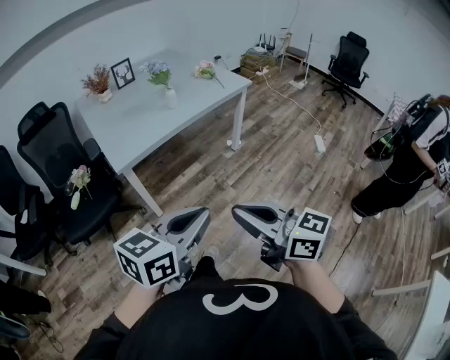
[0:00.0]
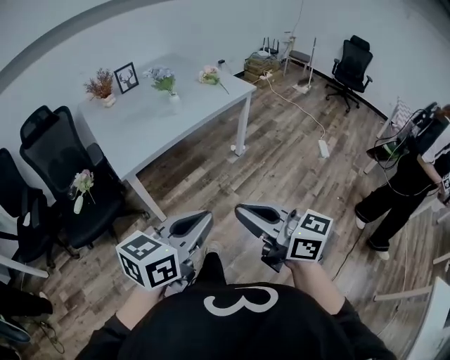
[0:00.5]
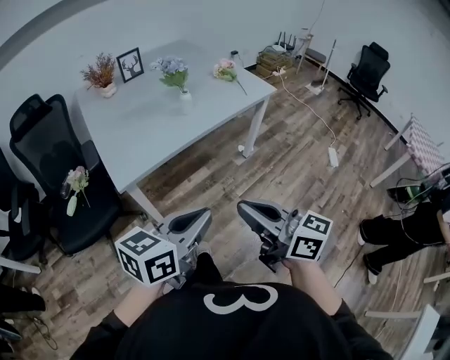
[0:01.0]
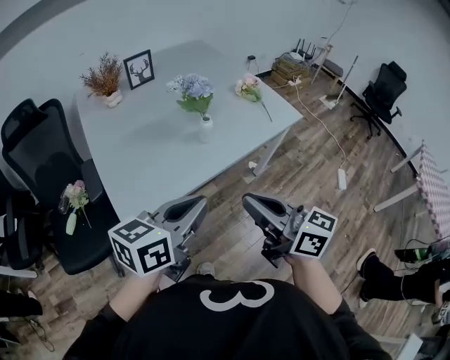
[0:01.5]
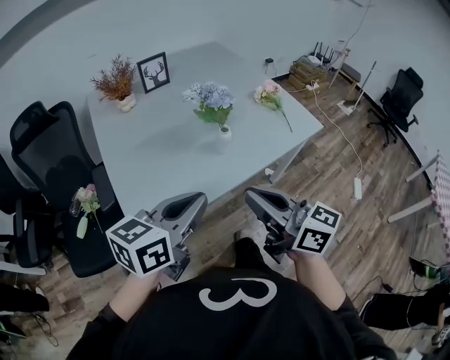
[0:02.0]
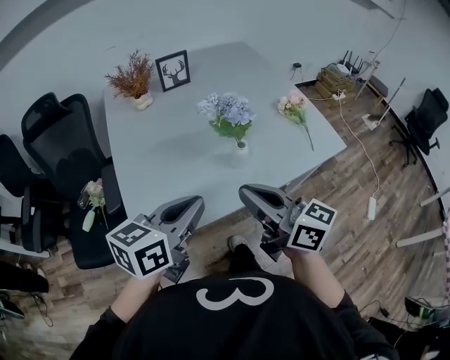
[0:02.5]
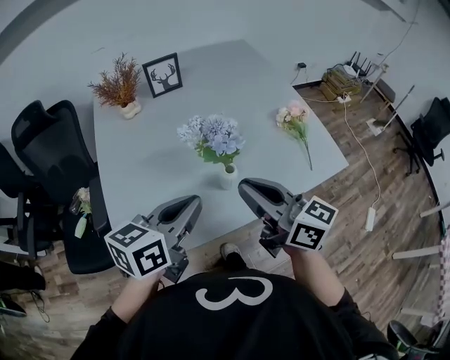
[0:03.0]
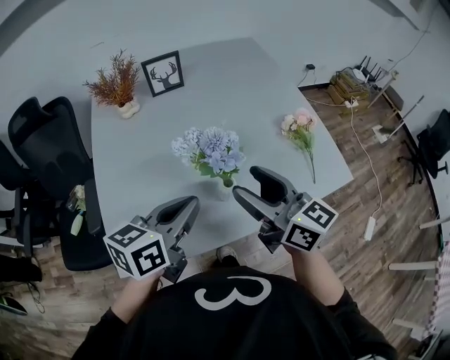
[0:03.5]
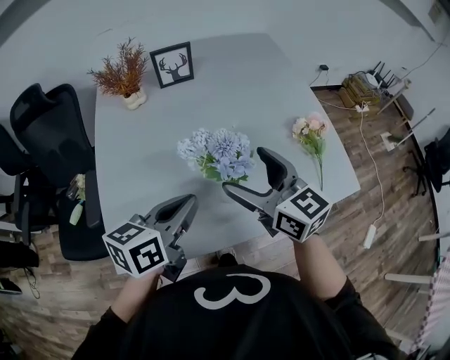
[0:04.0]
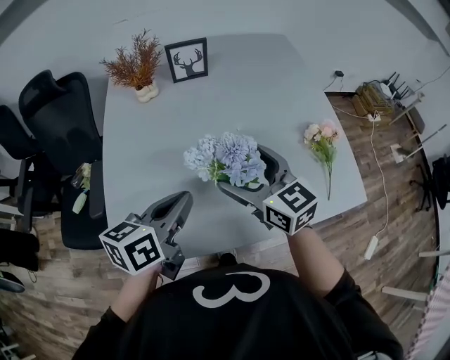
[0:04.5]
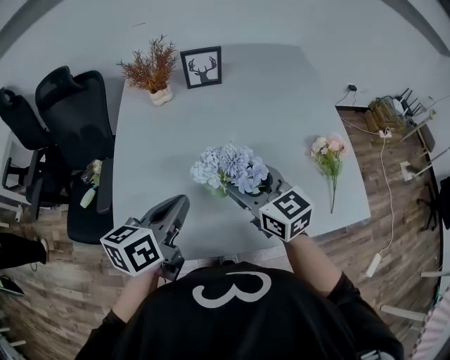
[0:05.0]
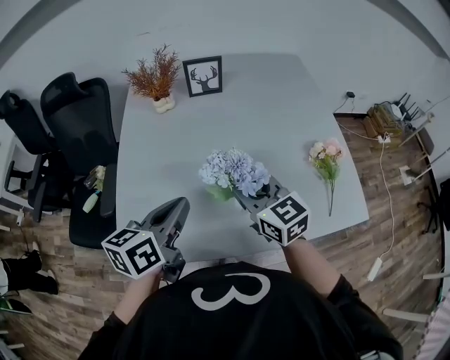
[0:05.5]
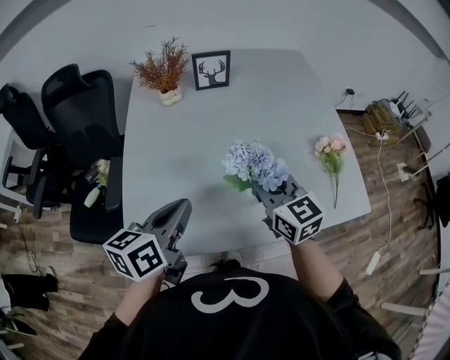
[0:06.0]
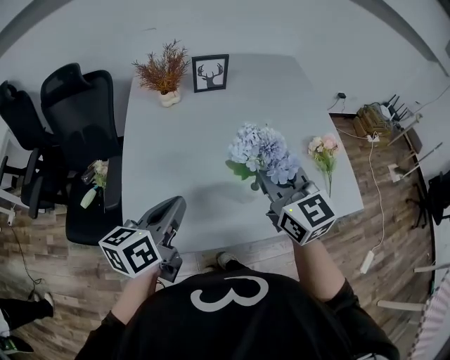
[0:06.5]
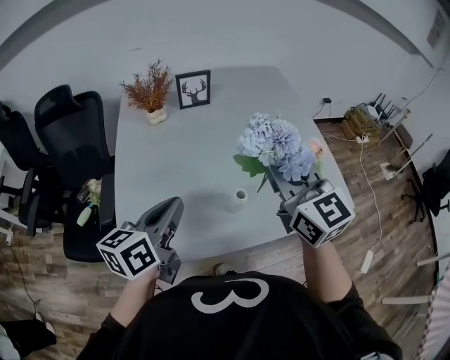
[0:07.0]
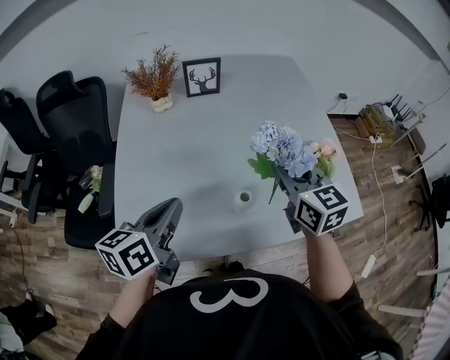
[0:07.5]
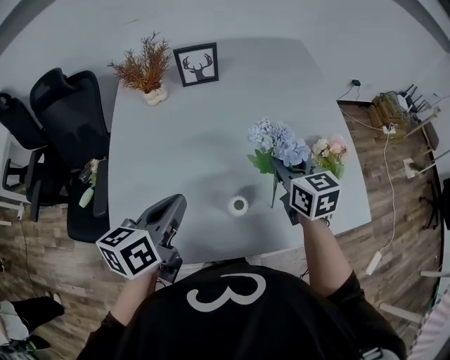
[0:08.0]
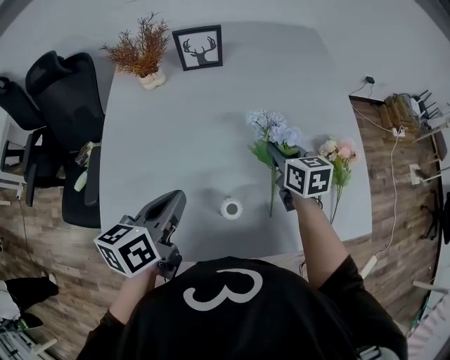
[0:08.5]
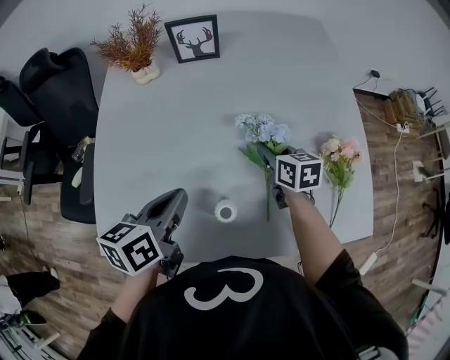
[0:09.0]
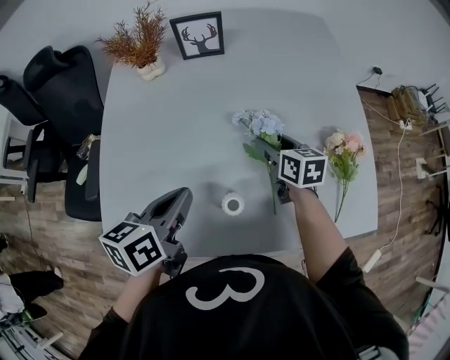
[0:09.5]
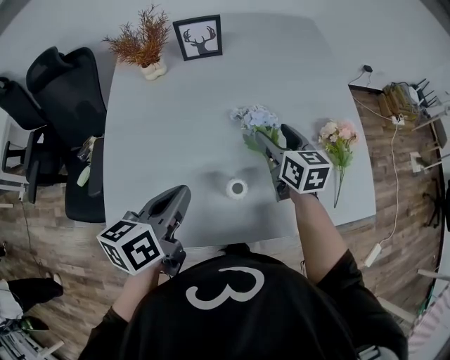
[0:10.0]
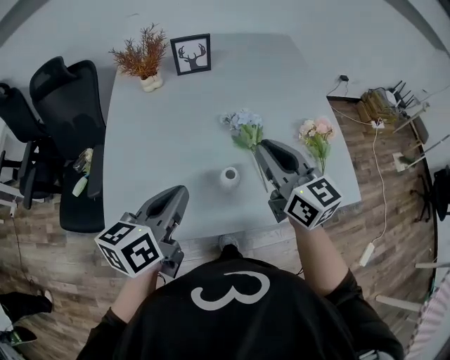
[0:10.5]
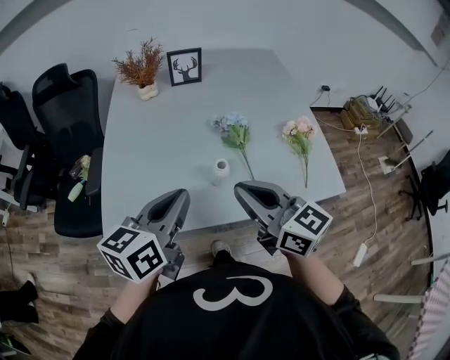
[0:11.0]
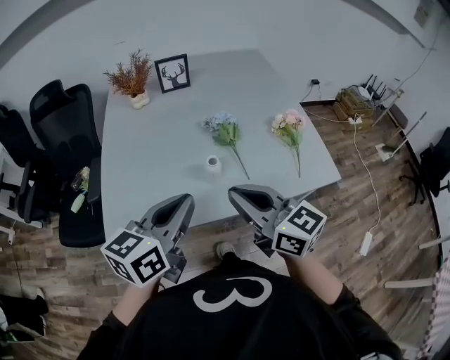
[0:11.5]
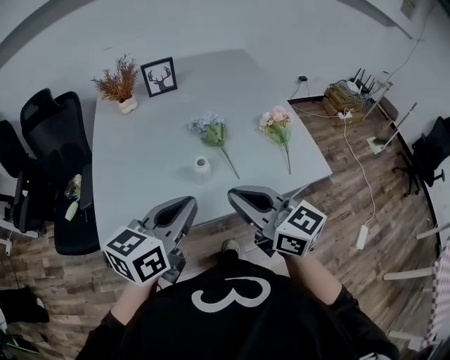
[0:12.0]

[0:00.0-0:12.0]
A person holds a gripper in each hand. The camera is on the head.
0:00.0 to 0:02.0: Both grippers are carried forward, approximately 40 cm.
0:02.0 to 0:04.0: Both grippers travel together forward, some 25 cm. The right gripper turns by roughly 20 degrees, and opens its fingers, while the left gripper turns by roughly 20 degrees.
0:04.0 to 0:06.0: The left gripper is displaced to the left by approximately 10 cm. Meanwhile the right gripper closes.
0:06.0 to 0:08.0: The right gripper goes roughly 15 cm to the right and forward, and reaches roughly 15 cm upward, then returns. Meanwhile the left gripper is displaced forward by roughly 5 cm.
0:08.0 to 0:10.0: The right gripper shifts about 5 cm downward, and opens.
0:10.0 to 0:12.0: The right gripper goes approximately 35 cm backward and upward, swivels roughly 30 degrees, and closes. The left gripper heads backward, upward and to the right, covering some 20 cm, and rotates roughly 30 degrees.

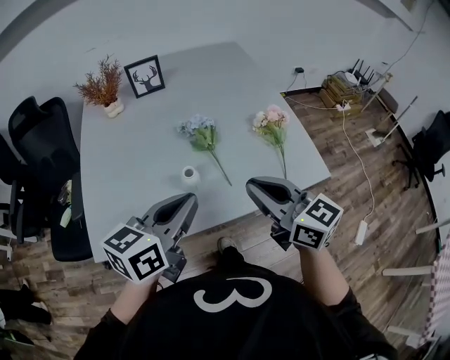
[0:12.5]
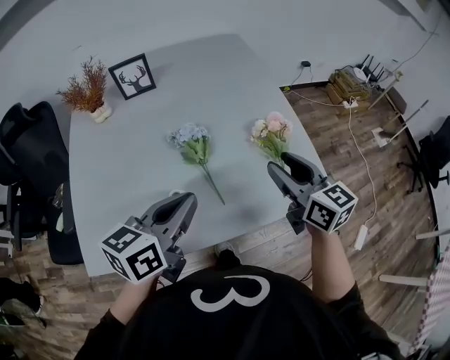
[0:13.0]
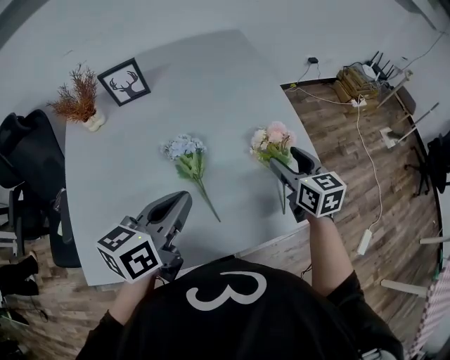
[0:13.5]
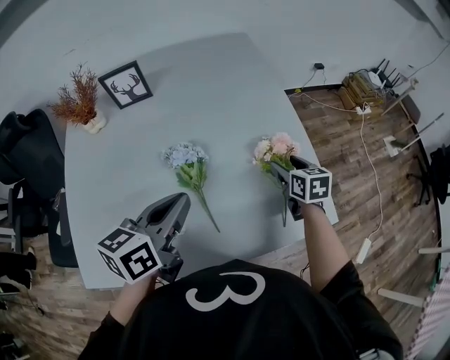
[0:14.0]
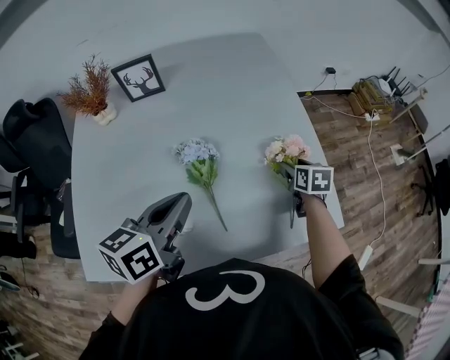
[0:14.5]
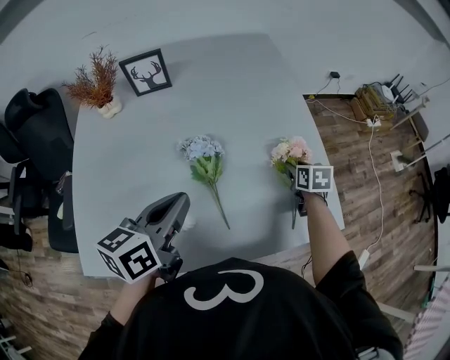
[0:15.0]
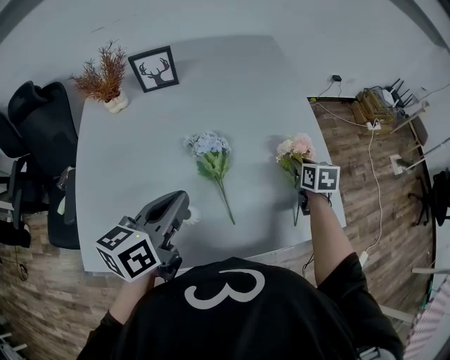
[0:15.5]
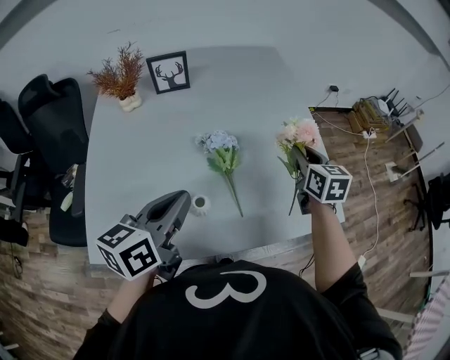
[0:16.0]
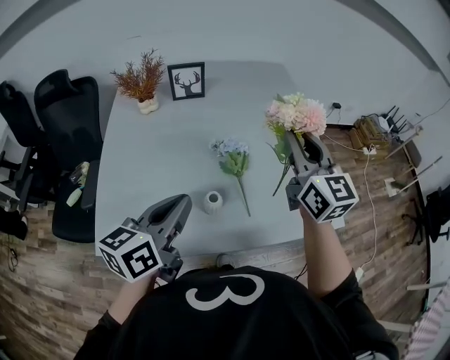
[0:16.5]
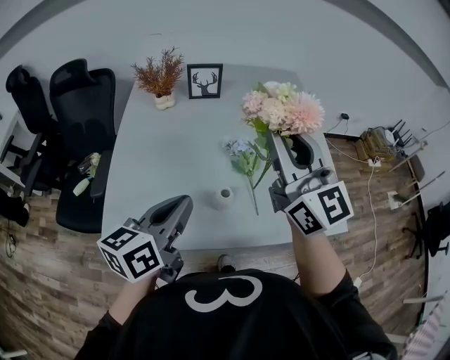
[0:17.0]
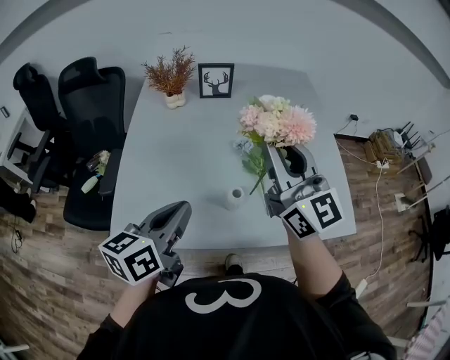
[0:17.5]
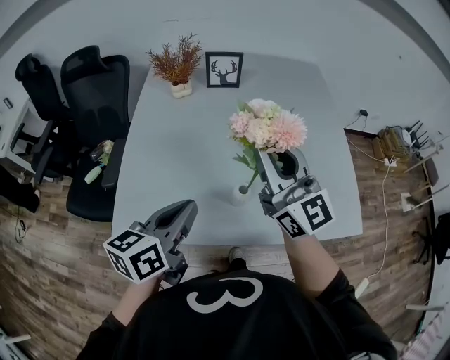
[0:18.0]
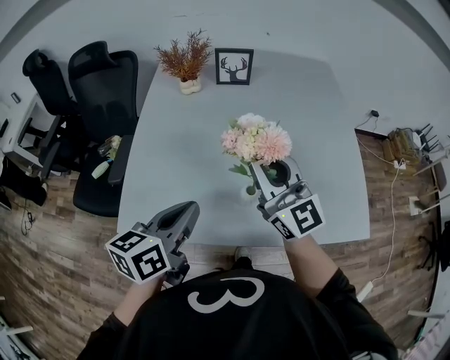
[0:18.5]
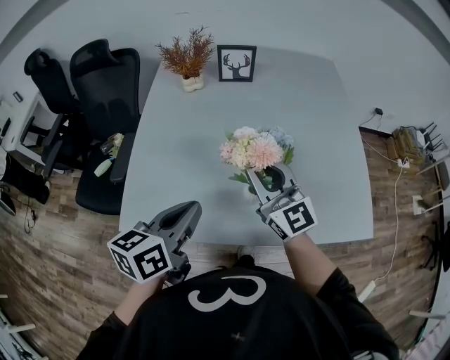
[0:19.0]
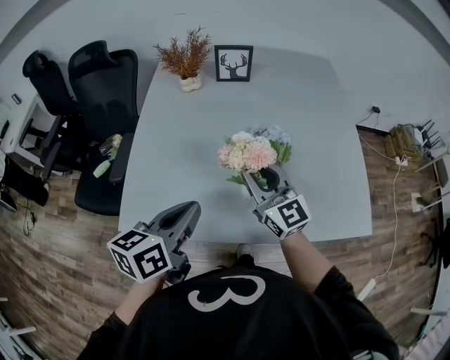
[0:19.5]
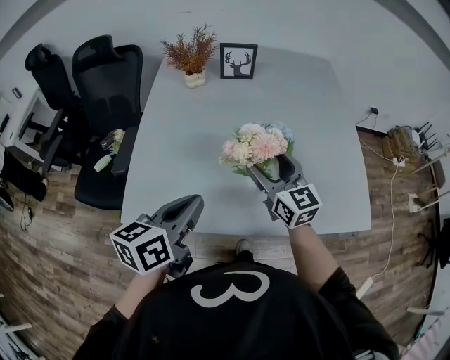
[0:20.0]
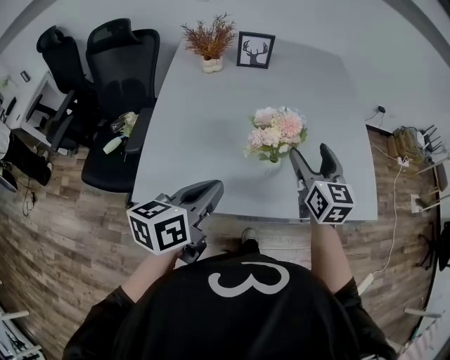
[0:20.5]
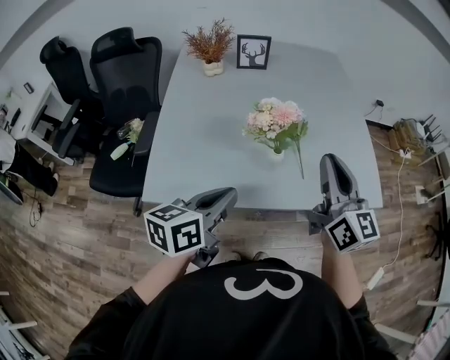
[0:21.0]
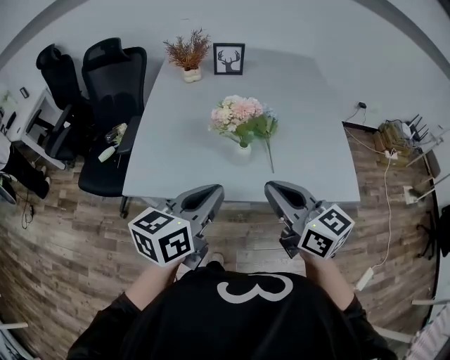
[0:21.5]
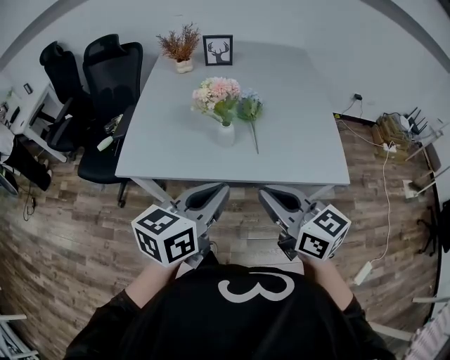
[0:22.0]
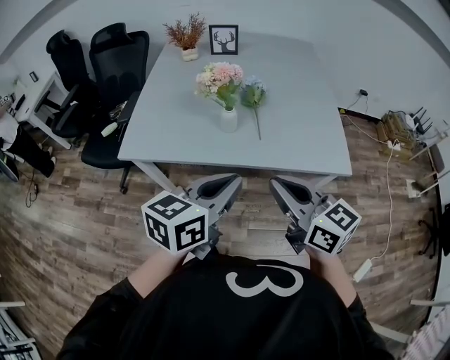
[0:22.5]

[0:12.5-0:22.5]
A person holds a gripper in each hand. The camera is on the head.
0:12.5 to 0:14.5: The right gripper heads forward, downward and to the right, covering approximately 40 cm, points its fingers about 40 degrees further downward, and opens up; the left gripper shifts about 20 cm forward.
0:14.5 to 0:16.5: The left gripper heads backward, to the left and upward, covering approximately 15 cm; the right gripper is displaced upward and to the left by approximately 35 cm, points its fingers roughly 50 degrees further upward, and closes its fingers.
0:16.5 to 0:18.5: The right gripper heads to the left, covering approximately 20 cm, and changes its angle by about 30 degrees, while the left gripper is displaced to the left by about 5 cm.
0:18.5 to 0:20.5: The left gripper ends up approximately 5 cm from where it was. Meanwhile the right gripper goes roughly 10 cm to the right and downward, changes its angle by roughly 40 degrees, and opens.
0:20.5 to 0:22.5: The right gripper heads backward, covering approximately 30 cm, turns by some 40 degrees, and closes up, while the left gripper moves to the right and backward, some 25 cm.

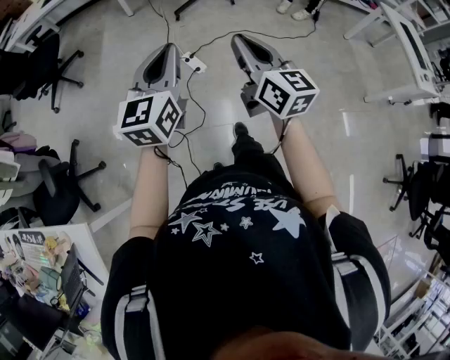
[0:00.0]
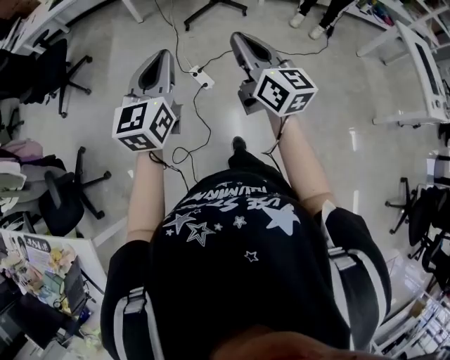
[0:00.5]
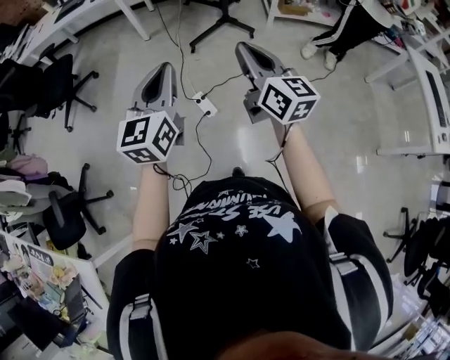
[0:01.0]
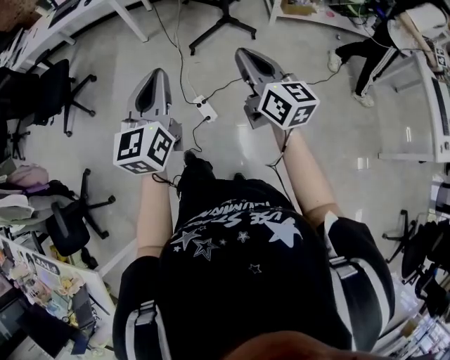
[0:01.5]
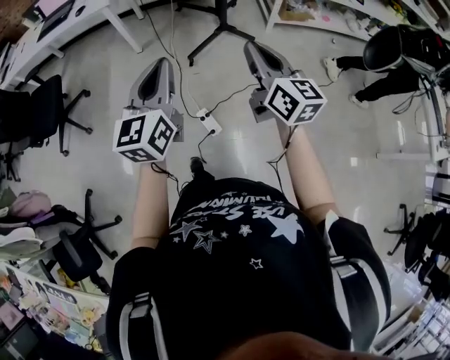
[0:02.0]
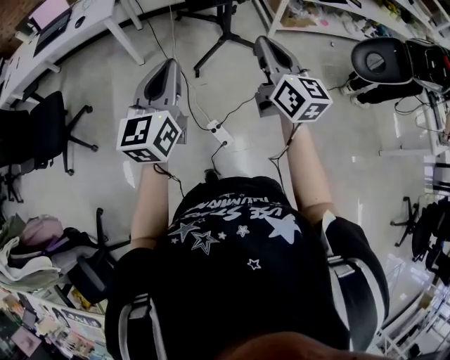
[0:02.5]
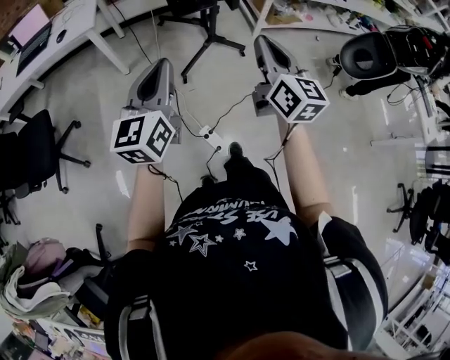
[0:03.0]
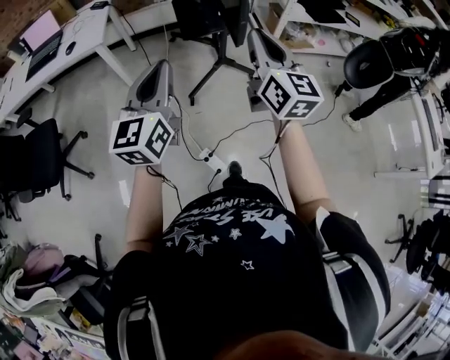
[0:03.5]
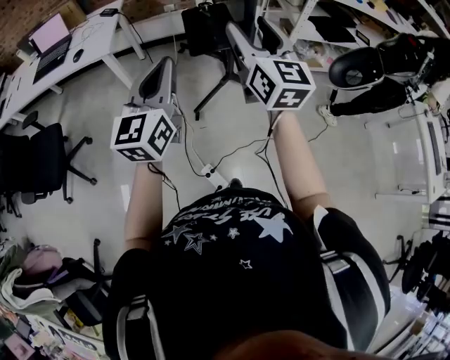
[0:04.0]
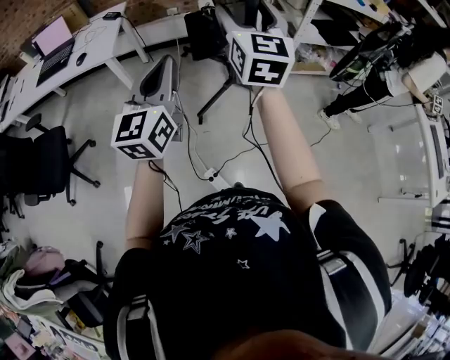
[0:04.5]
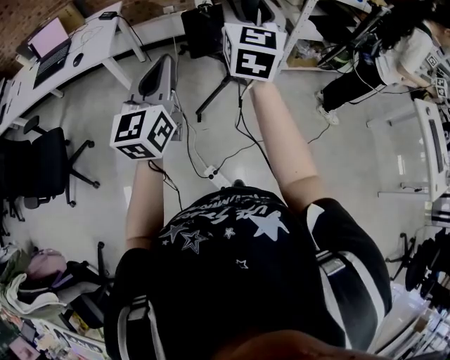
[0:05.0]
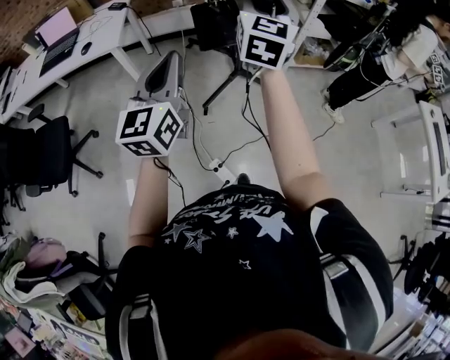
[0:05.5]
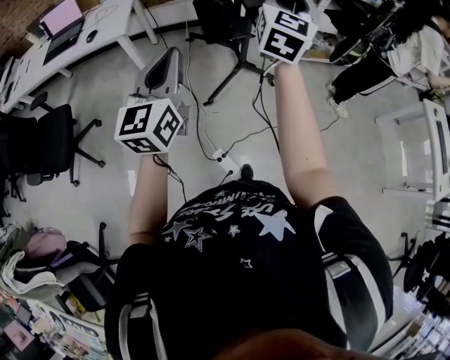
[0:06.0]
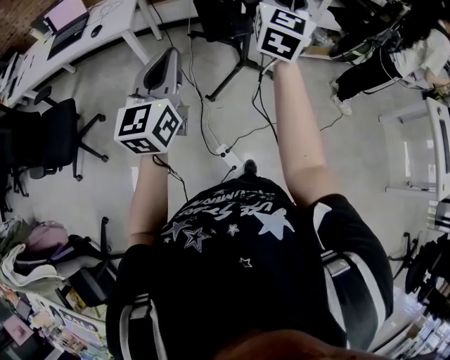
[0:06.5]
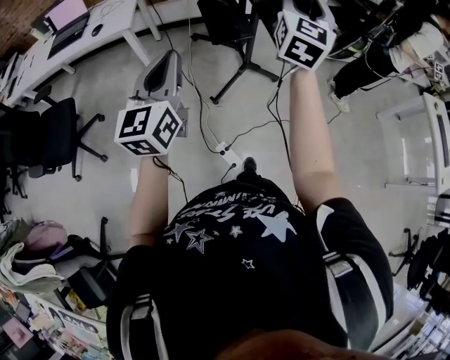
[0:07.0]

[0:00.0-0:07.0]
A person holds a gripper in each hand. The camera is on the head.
0:00.0 to 0:02.0: Both grippers are carried forward, about 40 cm.
0:02.0 to 0:03.5: Both grippers travel together forward, some 25 cm.
0:03.5 to 0:05.0: The left gripper heads forward, covering about 10 cm. Meanwhile the right gripper is displaced forward and upward by some 15 cm, swivels roughly 20 degrees, and opens.
0:05.0 to 0:07.0: The left gripper is displaced backward by roughly 15 cm. The right gripper is displaced backward and to the right by approximately 10 cm.
